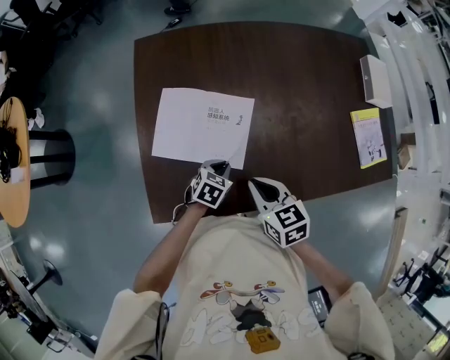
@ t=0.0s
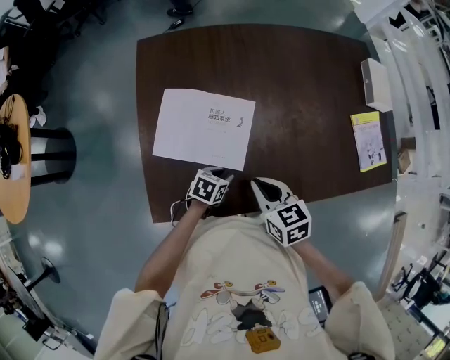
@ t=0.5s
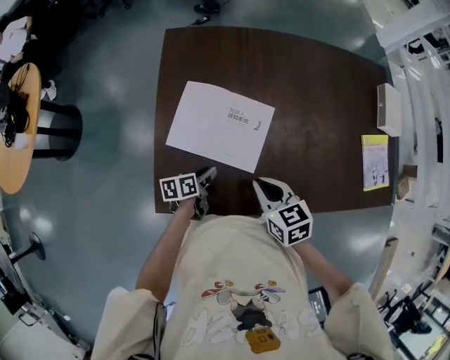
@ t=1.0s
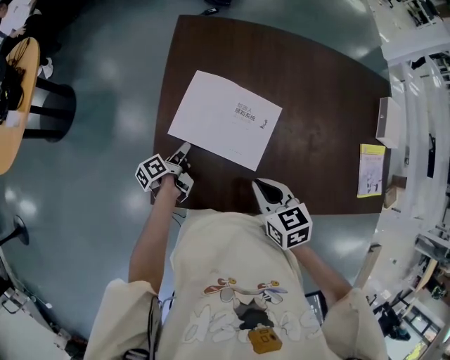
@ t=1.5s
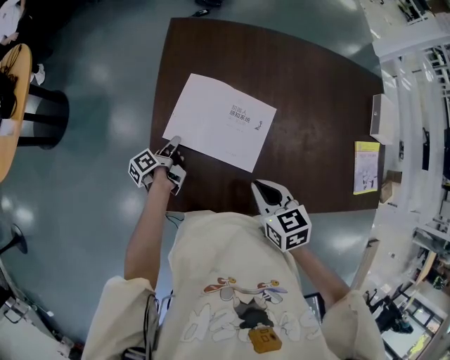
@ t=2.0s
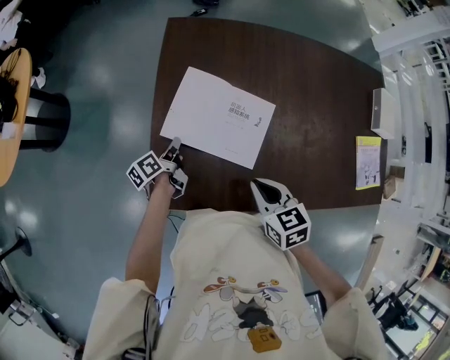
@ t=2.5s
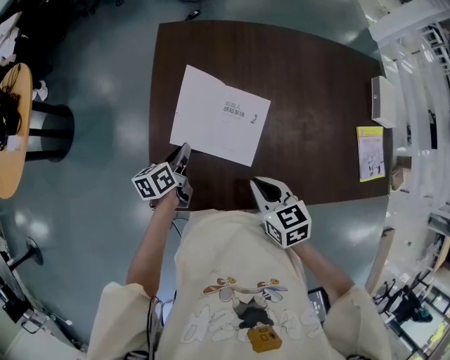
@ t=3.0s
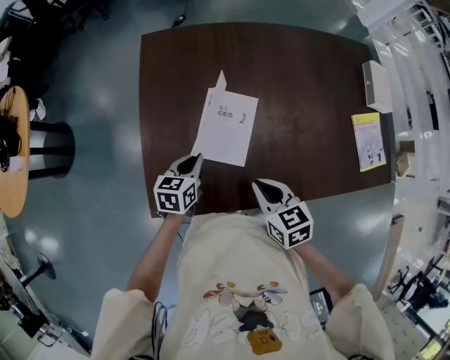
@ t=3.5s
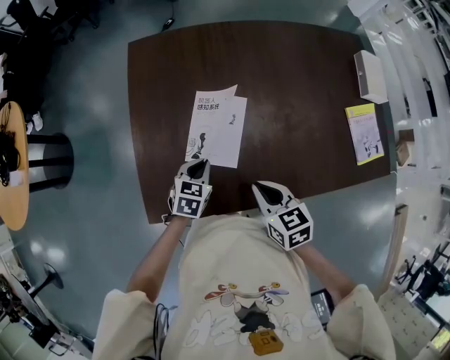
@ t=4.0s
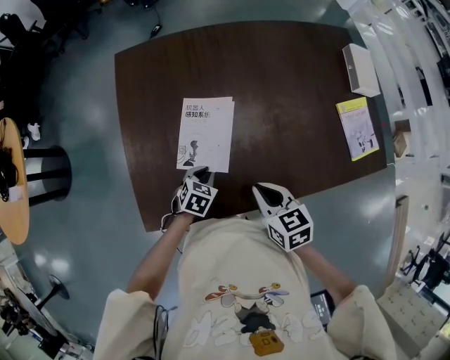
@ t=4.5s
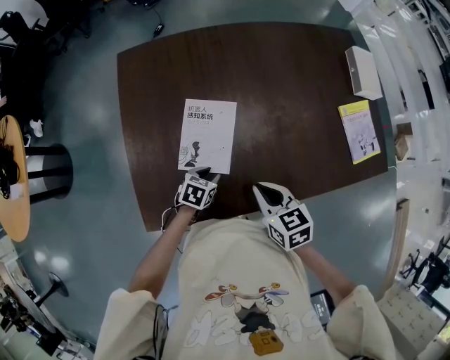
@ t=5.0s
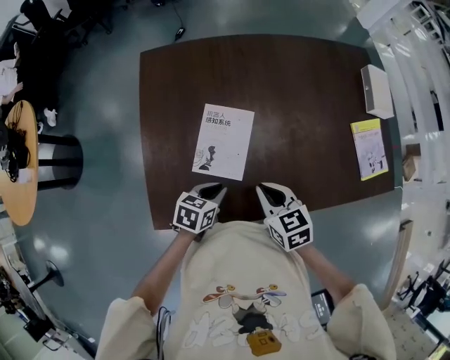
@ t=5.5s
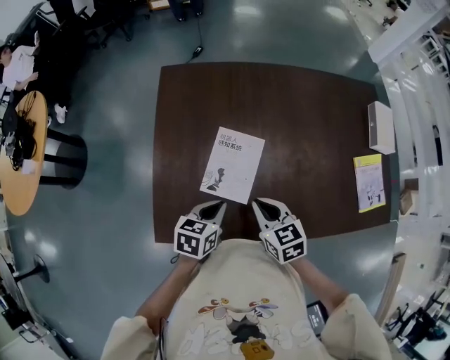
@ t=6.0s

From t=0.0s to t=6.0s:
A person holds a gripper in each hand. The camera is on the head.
From t=0.0s to t=2.0s: The left gripper shifts by roughly 25 cm, and twists some 90 degrees counterclockwise, seen from behind.
From t=2.0s to t=4.0s: The left gripper is displaced to the right and upward by about 20 cm, rotates around the line of its fingers by approximately 90 degrees, clockwise from behind, and closes its fingers. The right gripper heads to the right, covering some 5 cm.
From t=4.0s to t=6.0s: The right gripper is displaced forward by about 5 cm; the left gripper travels upward by approximately 10 cm, turns by about 20 degrees, and opens and closes again.

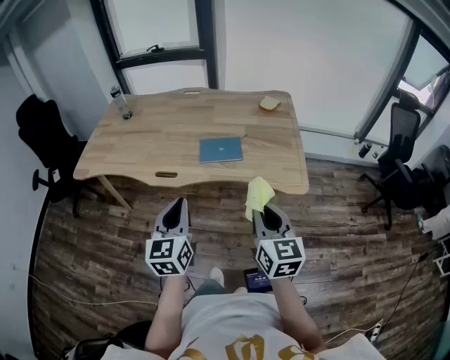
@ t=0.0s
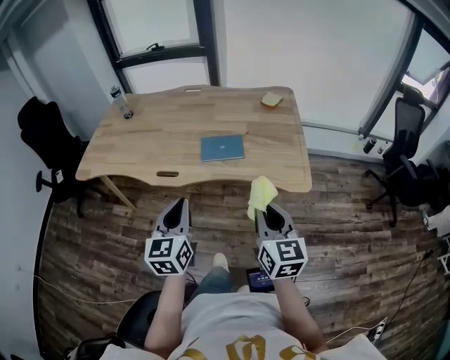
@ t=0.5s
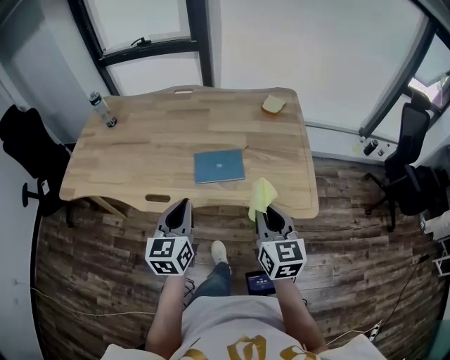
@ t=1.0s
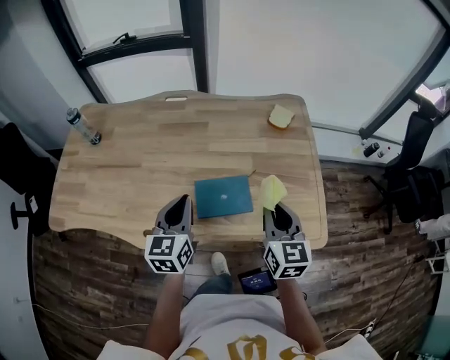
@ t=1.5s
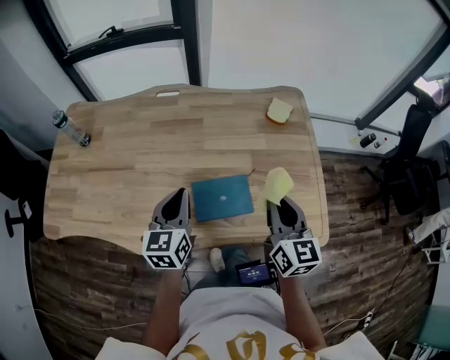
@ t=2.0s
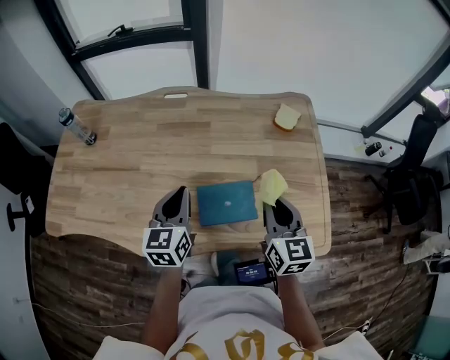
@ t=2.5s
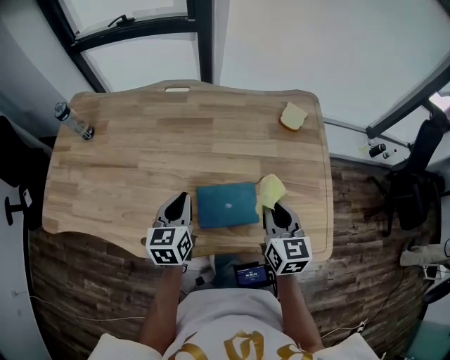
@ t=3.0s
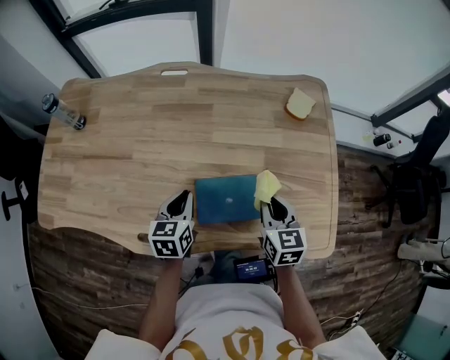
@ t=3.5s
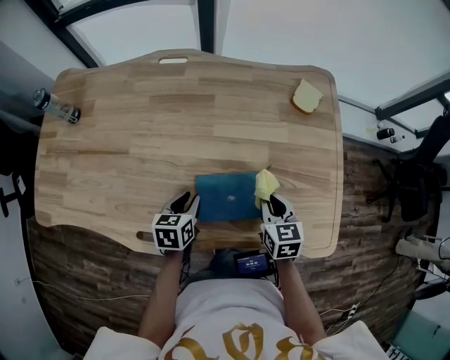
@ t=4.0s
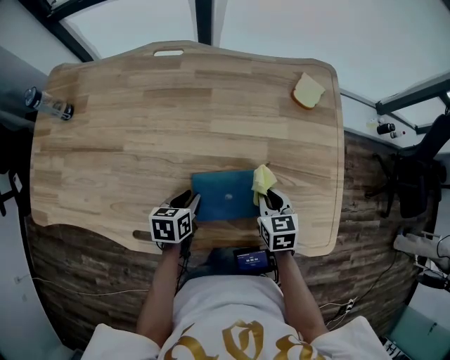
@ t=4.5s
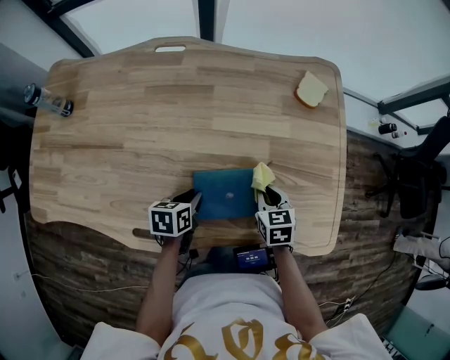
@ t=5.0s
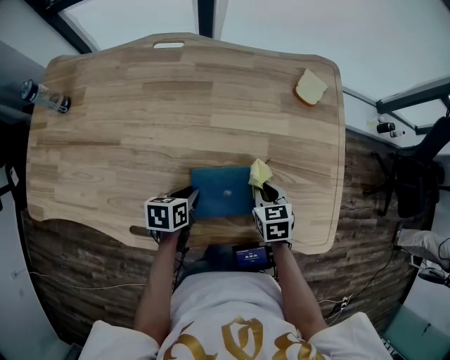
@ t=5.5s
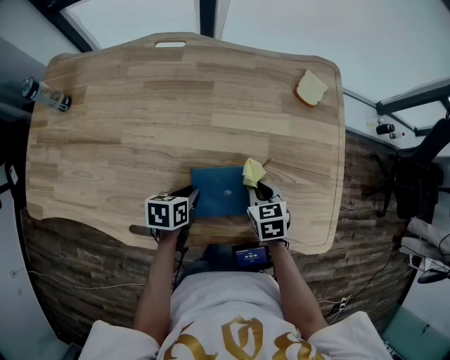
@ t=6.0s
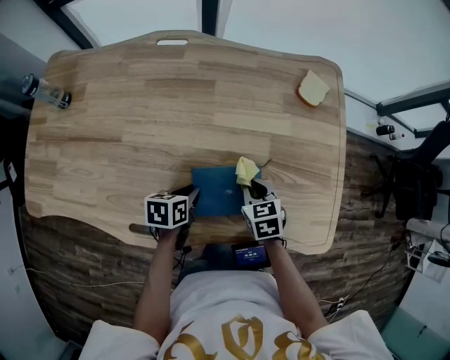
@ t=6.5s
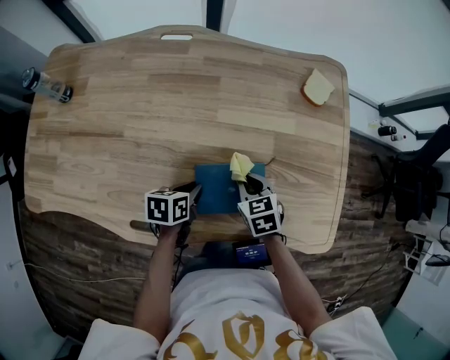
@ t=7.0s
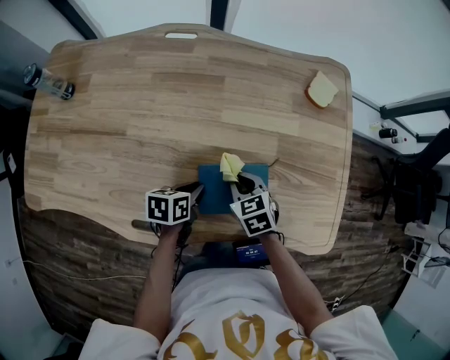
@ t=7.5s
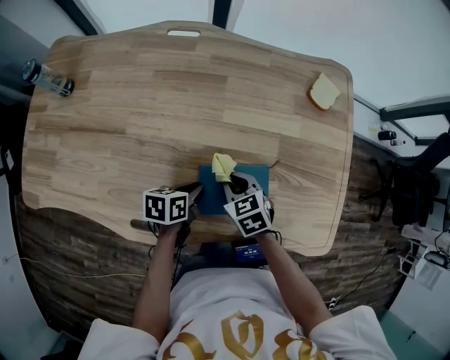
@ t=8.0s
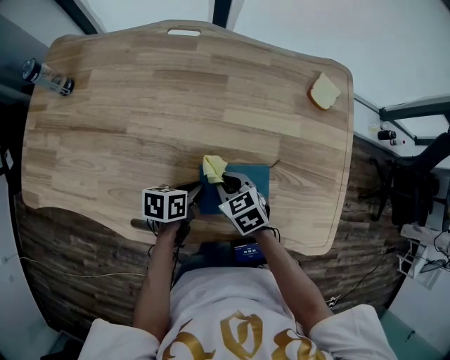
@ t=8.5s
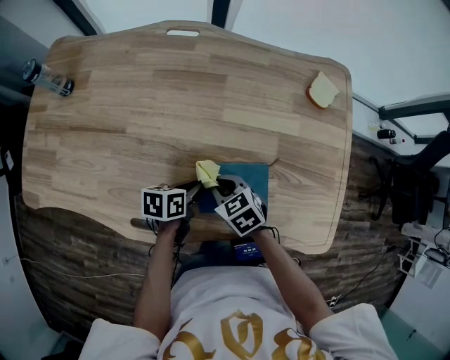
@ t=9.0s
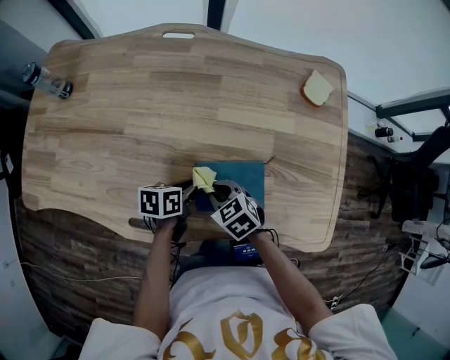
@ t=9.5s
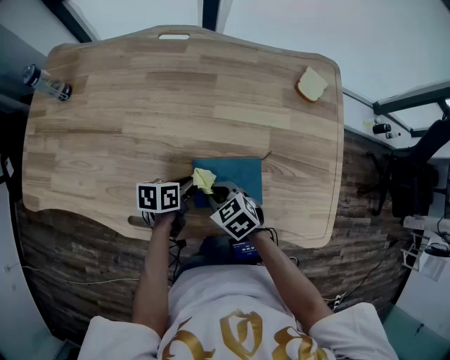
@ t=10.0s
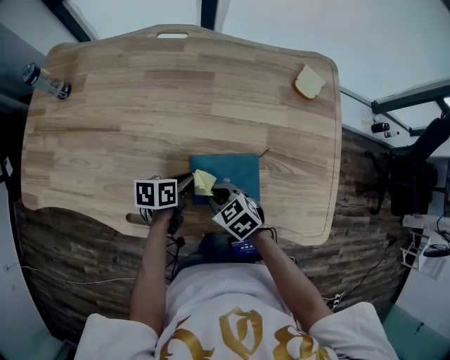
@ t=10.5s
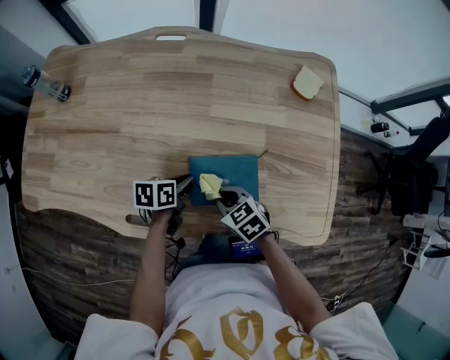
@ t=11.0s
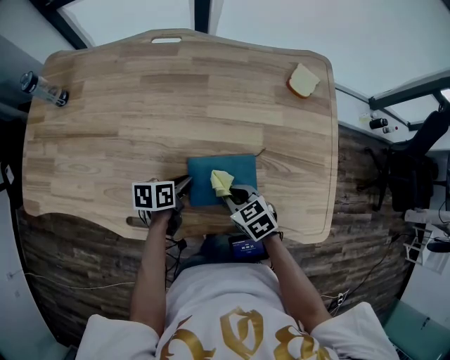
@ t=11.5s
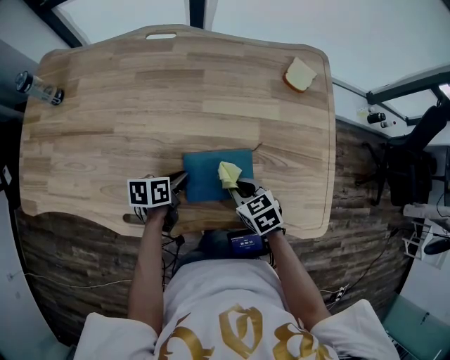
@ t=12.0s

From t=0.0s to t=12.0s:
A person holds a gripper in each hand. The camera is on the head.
From t=0.0s to t=2.0s: The two grippers go some 40 cm forward.
From t=2.0s to t=4.0s: The grippers both shift downward by some 20 cm. The left gripper rotates some 30 degrees, and opens up, while the right gripper changes its angle by approximately 30 degrees.
From t=4.0s to t=6.0s: The right gripper heads downward, covering roughly 5 cm.
From t=6.0s to t=8.0s: The right gripper shifts some 10 cm to the left.
From t=8.0s to t=10.0s: The right gripper is displaced backward by roughly 5 cm.
From t=10.0s to t=12.0s: The right gripper heads to the right, covering roughly 10 cm.

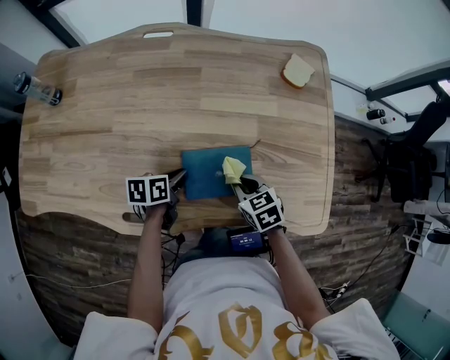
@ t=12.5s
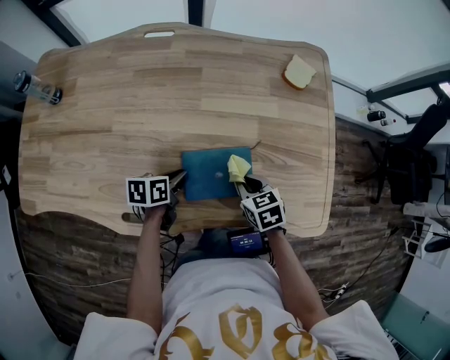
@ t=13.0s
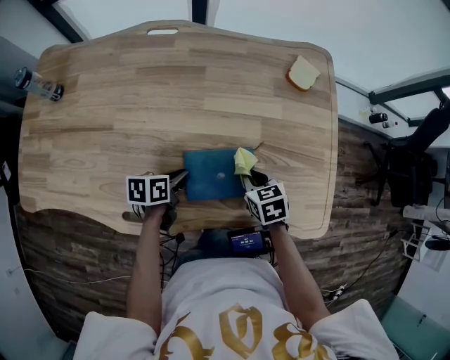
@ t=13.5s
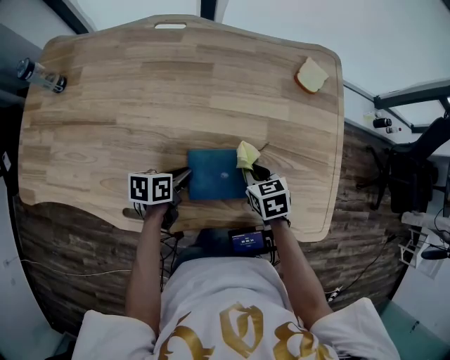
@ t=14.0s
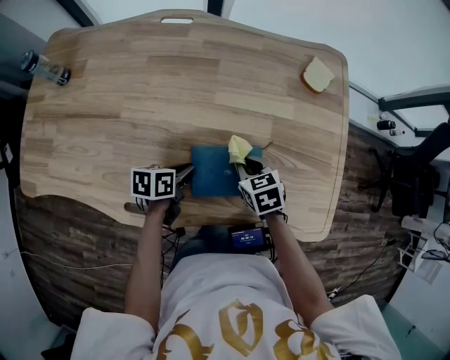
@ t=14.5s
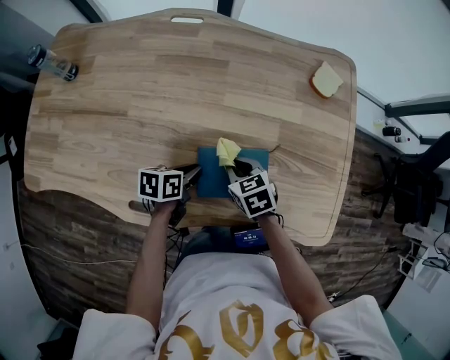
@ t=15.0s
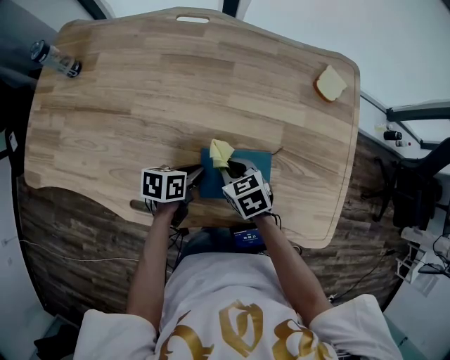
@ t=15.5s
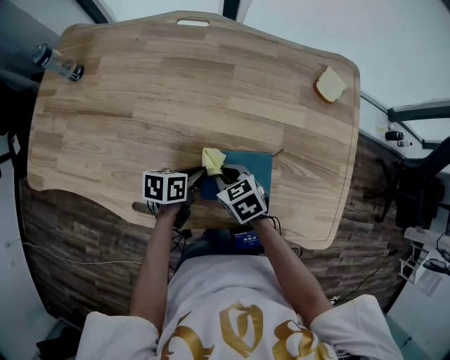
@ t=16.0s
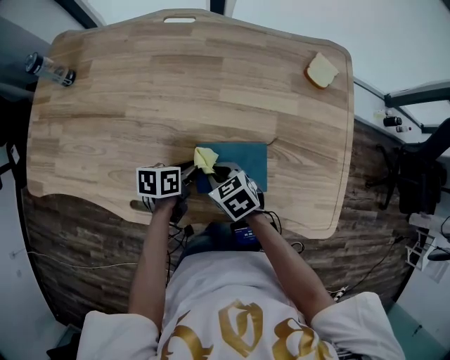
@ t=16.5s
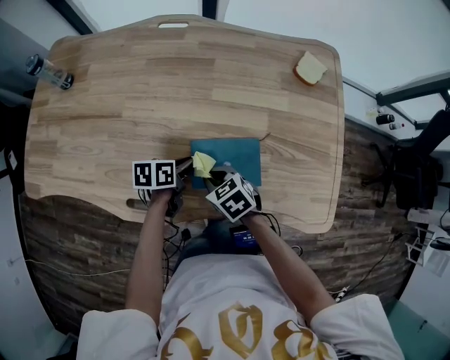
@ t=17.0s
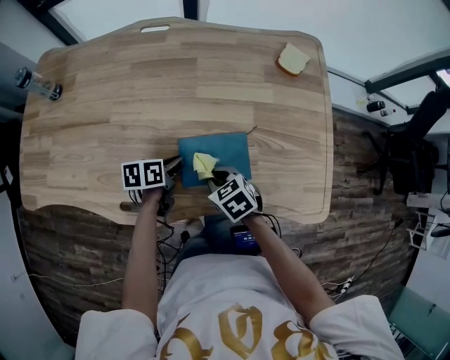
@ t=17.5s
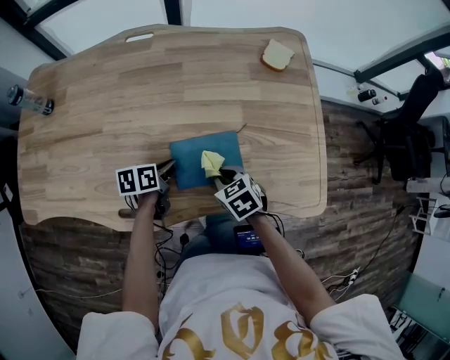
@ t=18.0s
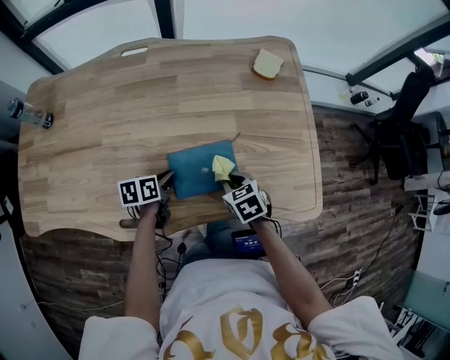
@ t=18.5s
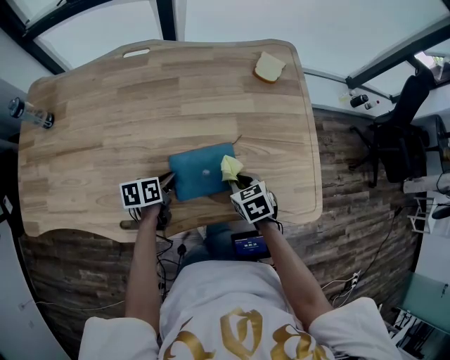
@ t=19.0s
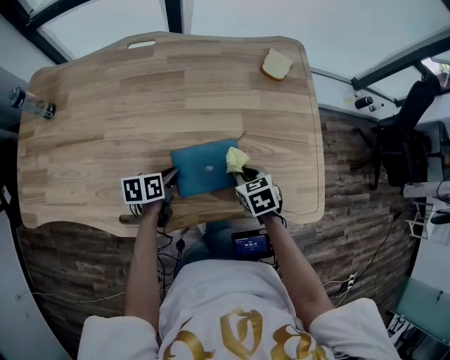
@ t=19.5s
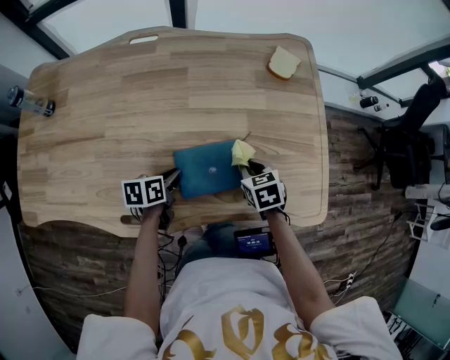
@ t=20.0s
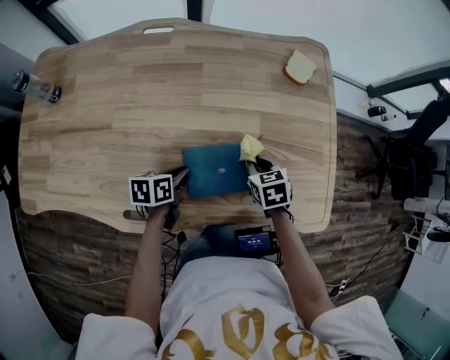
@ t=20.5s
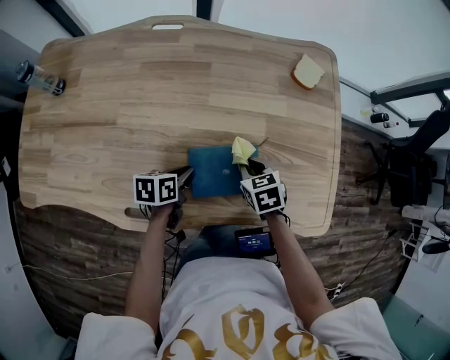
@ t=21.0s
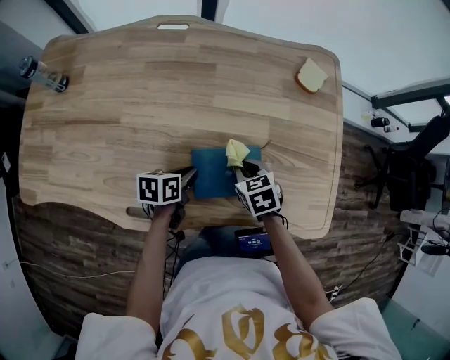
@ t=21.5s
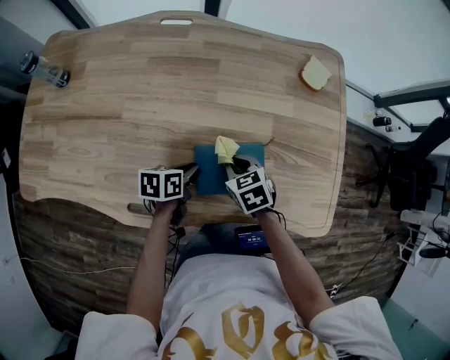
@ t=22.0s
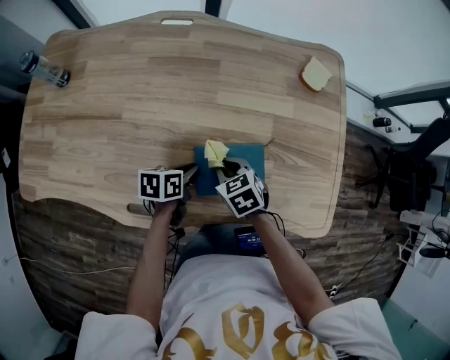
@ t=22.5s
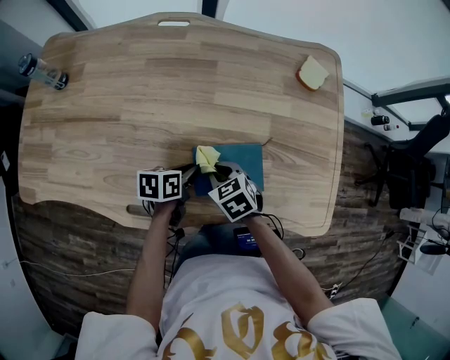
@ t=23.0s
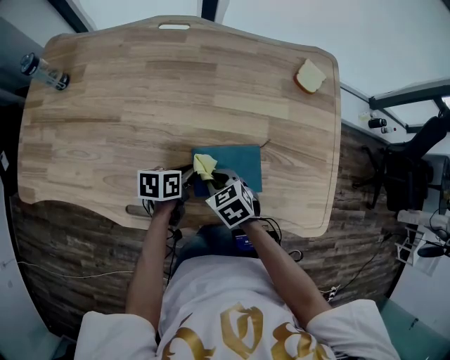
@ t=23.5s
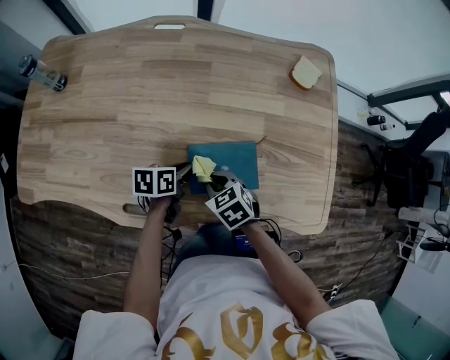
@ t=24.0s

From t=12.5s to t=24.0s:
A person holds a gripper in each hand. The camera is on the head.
From t=12.5s to t=14.5s: The right gripper travels forward by roughly 5 cm.
From t=14.5s to t=16.5s: The right gripper travels to the left and backward by roughly 10 cm.
From t=16.5s to t=18.5s: The right gripper is displaced to the right by roughly 15 cm, and swivels roughly 20 degrees.
From t=18.5s to t=20.0s: The right gripper moves forward, about 5 cm.
From t=20.0s to t=22.0s: The right gripper is displaced to the left by approximately 10 cm.
From t=22.0s to t=24.0s: The right gripper heads backward, covering roughly 5 cm.
